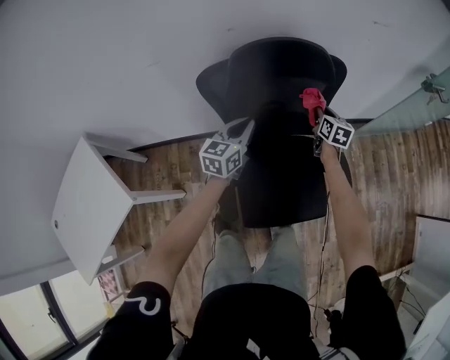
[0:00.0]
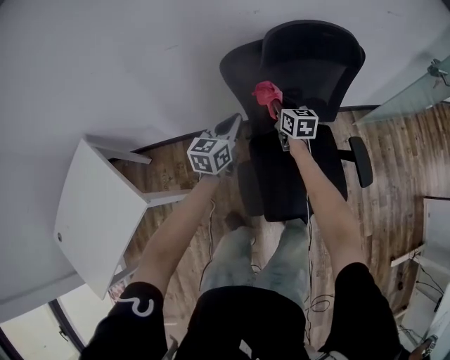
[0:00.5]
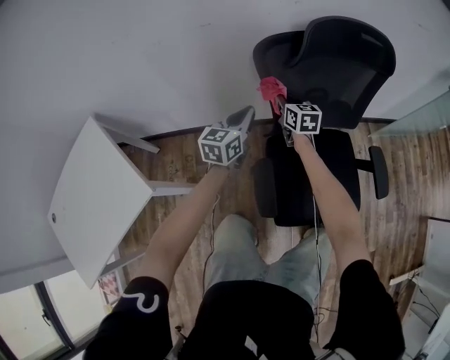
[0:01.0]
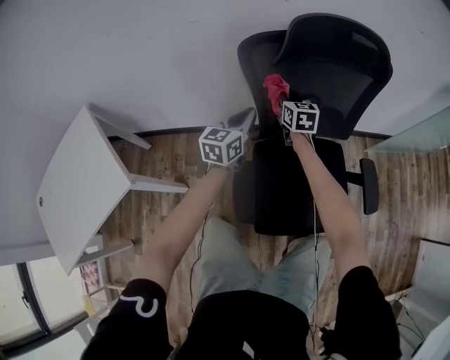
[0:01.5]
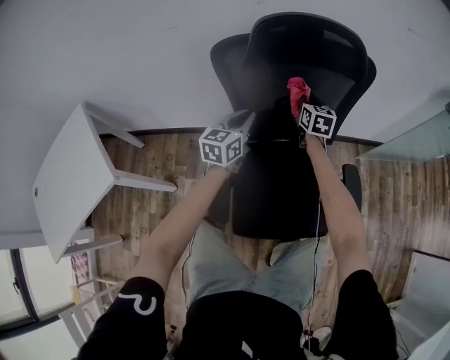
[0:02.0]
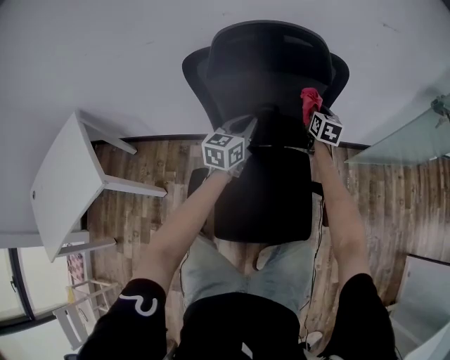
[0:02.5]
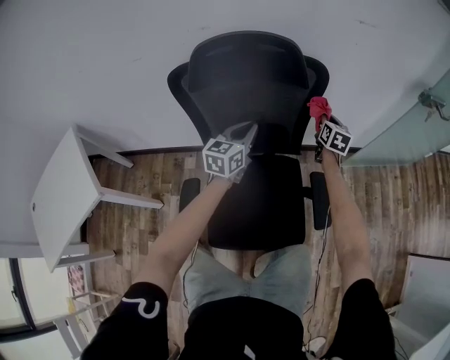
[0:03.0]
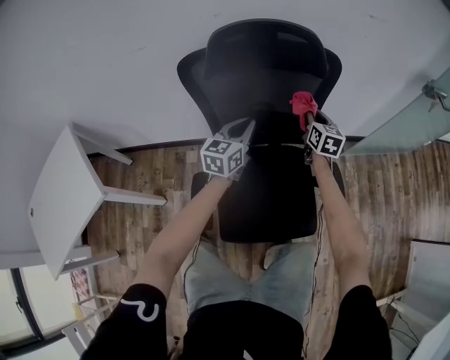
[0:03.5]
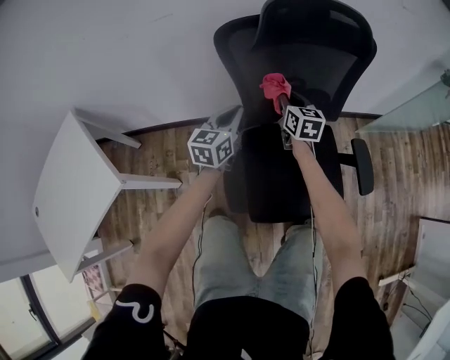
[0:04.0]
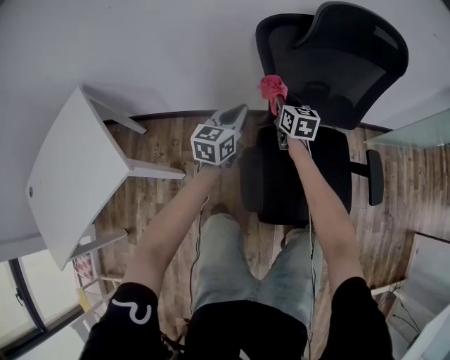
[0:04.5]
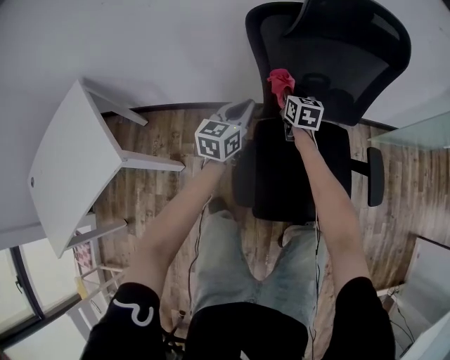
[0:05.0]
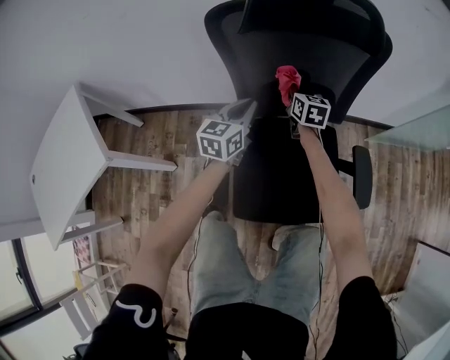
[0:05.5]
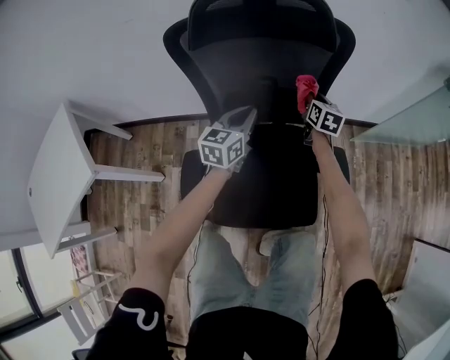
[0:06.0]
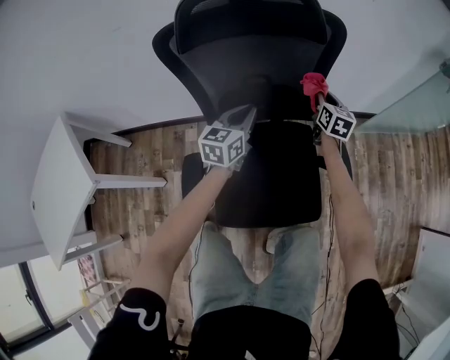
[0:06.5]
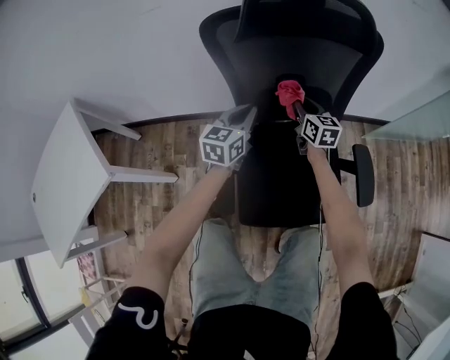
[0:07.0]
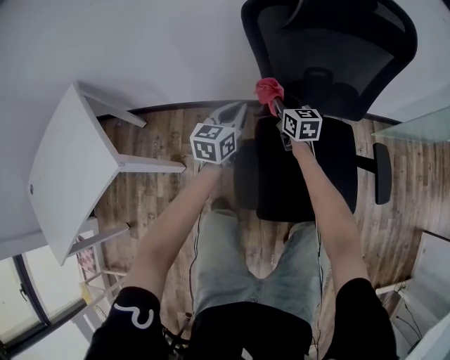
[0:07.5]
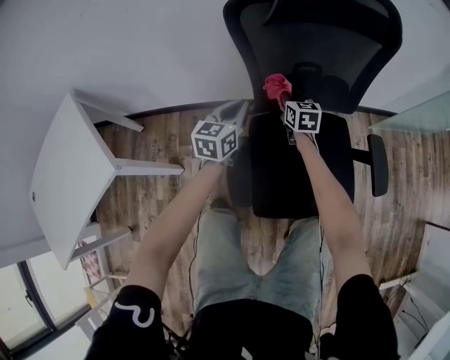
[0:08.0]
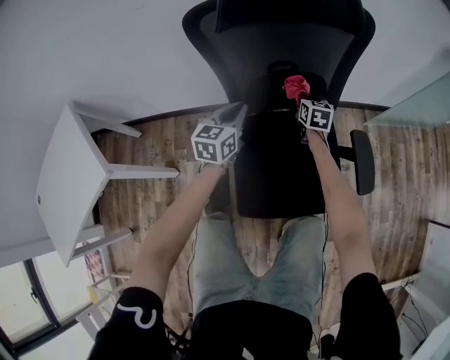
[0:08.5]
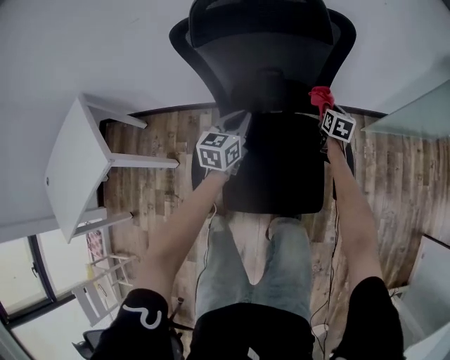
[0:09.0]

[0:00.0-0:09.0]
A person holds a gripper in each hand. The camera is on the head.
0:00.0 to 0:02.0: The right gripper travels to the left and downward by some 15 cm; the left gripper moves downward, roughly 10 cm, and reaches some 20 cm to the left, then returns.
0:02.0 to 0:04.5: Both grippers move to the left and backward, some 20 cm.
0:04.5 to 0:07.0: Both grippers travel together to the right, about 15 cm.
0:07.0 to 0:09.0: The left gripper travels to the right by approximately 10 cm. Meanwhile the right gripper shifts approximately 25 cm to the right, and turns by about 20 degrees.

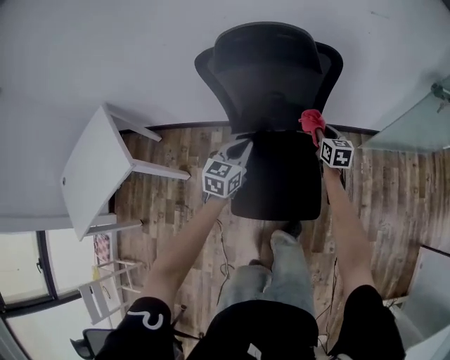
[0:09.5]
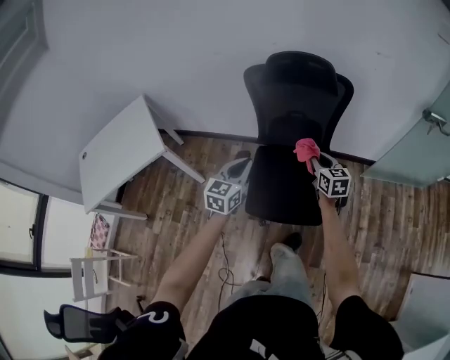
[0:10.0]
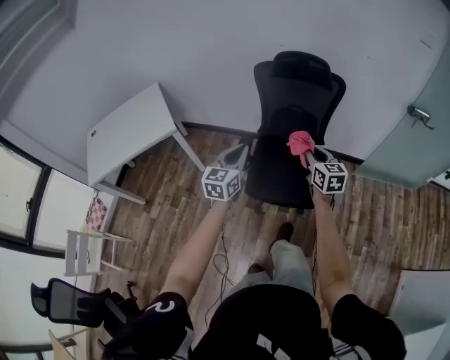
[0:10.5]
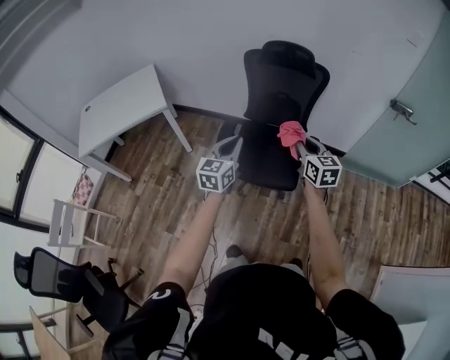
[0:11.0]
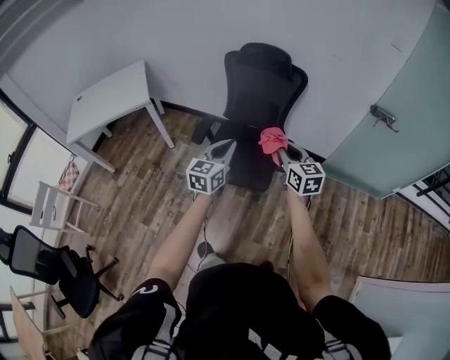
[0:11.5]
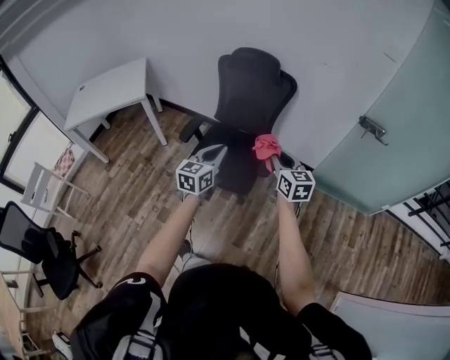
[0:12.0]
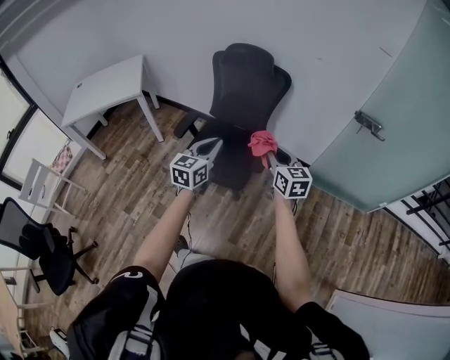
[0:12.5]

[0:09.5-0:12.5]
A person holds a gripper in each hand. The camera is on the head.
0:09.5 to 0:11.0: The grippers both shift backward and upward by approximately 50 cm. The left gripper rotates approximately 30 degrees. The right gripper turns by some 30 degrees.
0:11.0 to 0:12.5: The grippers both shift to the right by approximately 20 cm.

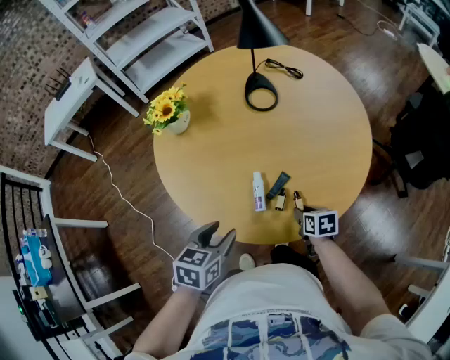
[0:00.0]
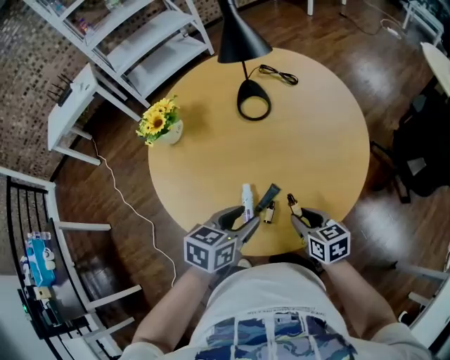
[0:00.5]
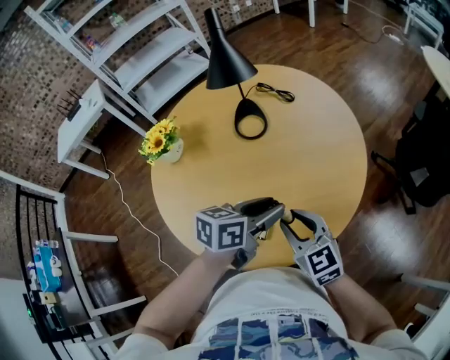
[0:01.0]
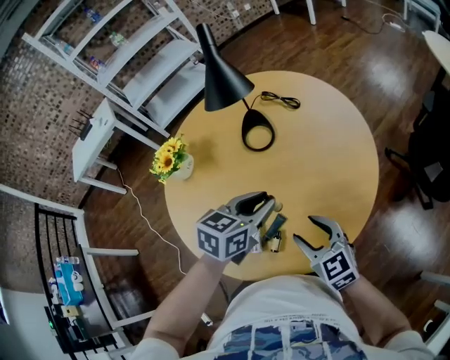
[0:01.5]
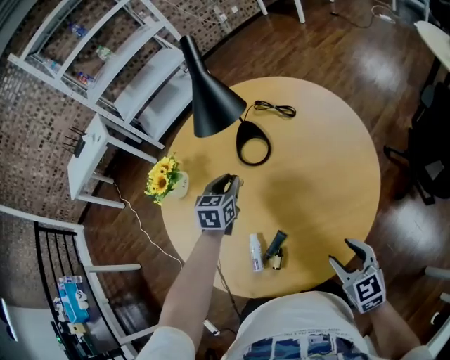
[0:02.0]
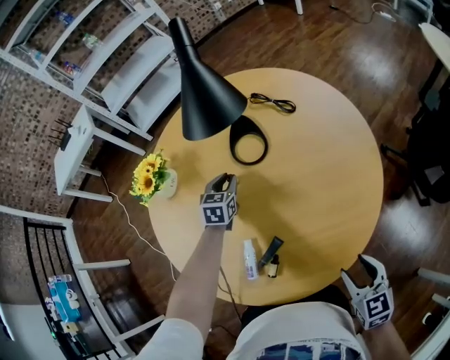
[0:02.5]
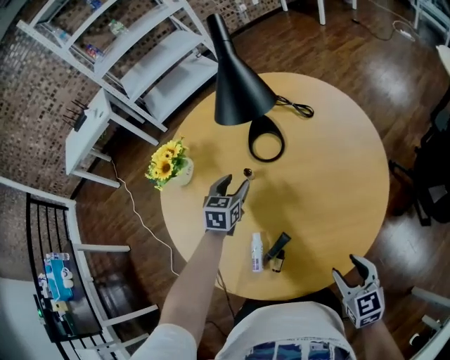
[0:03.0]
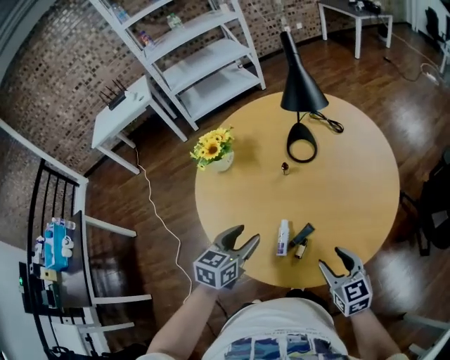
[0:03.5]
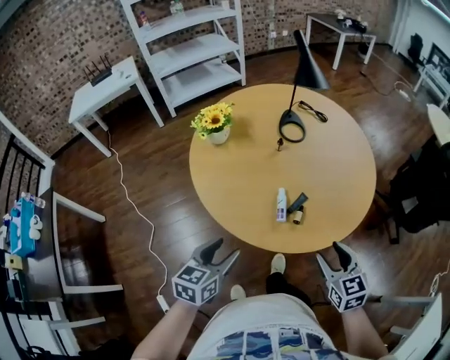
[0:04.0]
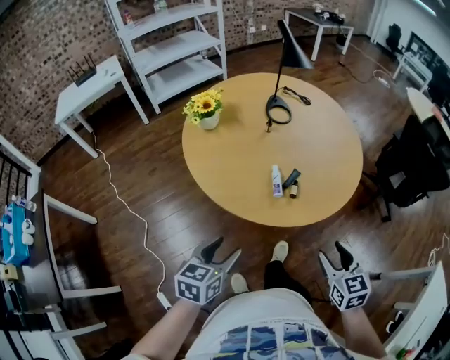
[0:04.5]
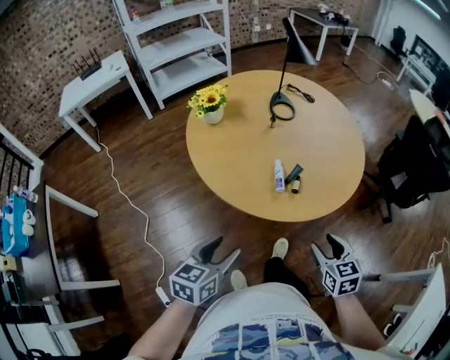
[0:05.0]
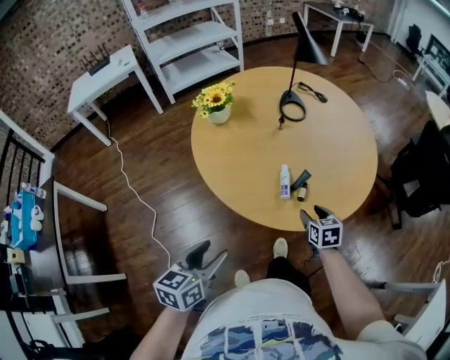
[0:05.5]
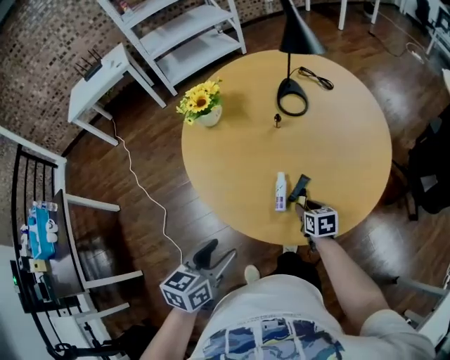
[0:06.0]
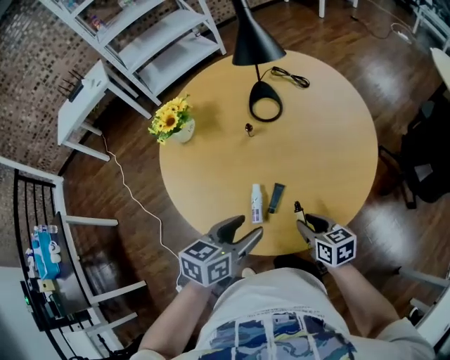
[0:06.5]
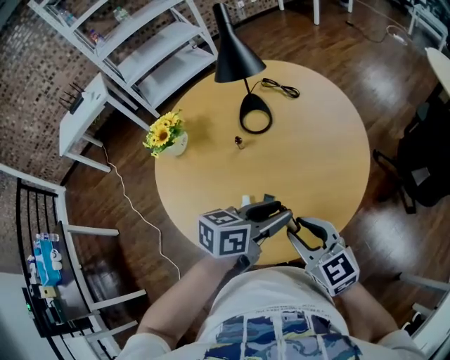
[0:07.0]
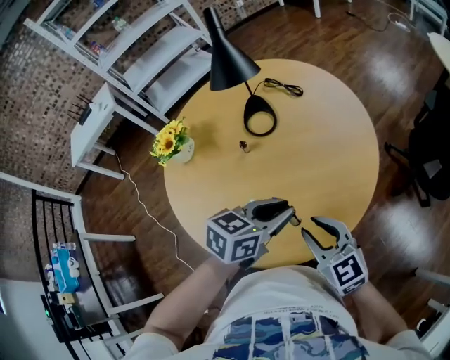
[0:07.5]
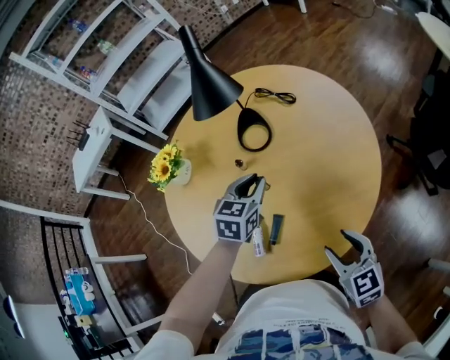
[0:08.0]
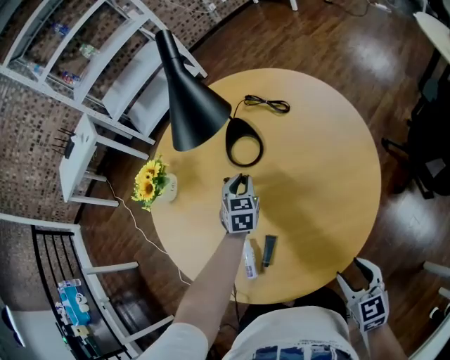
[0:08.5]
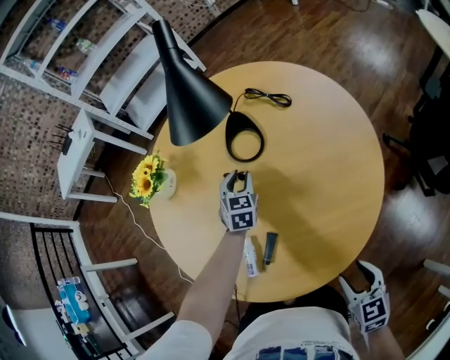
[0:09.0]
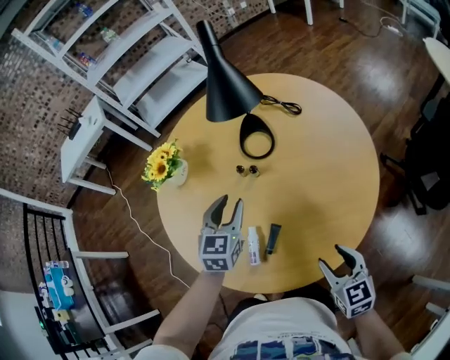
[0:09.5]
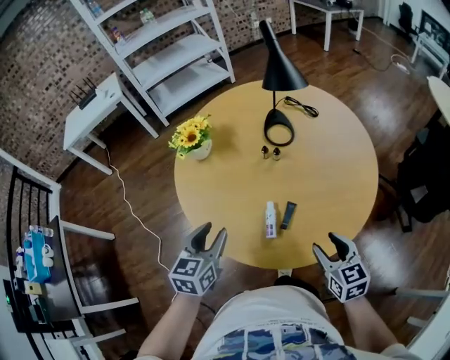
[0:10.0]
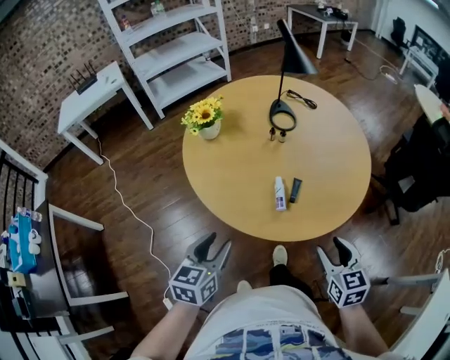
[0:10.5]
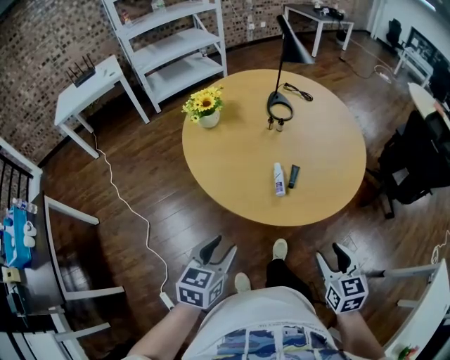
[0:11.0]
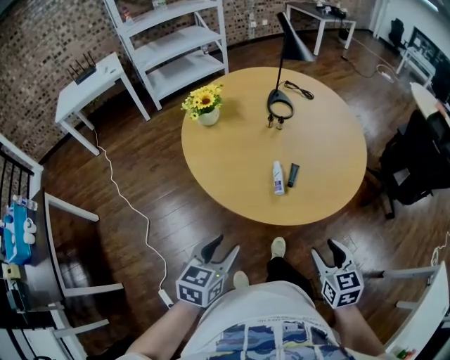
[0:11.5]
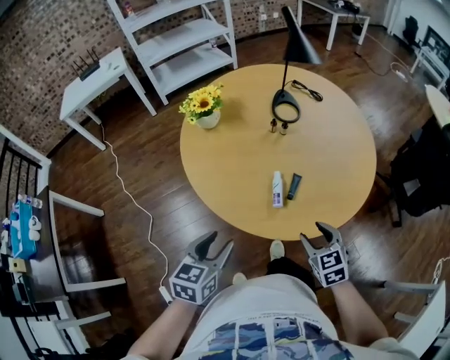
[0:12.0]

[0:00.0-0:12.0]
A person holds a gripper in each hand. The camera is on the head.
0:00.0 to 0:02.0: The left gripper moves forward, roughly 40 cm, and closes. Meanwhile the right gripper moves upward, to the right and forward, approximately 25 cm, swivels some 40 degrees, and opens its fingers.
0:02.0 to 0:04.0: The right gripper shifts some 25 cm to the left and backward. The left gripper goes some 50 cm backward and to the left, and opens its fingers.
0:04.0 to 0:06.0: The right gripper shifts roughly 30 cm downward and forward, and changes its angle by about 30 degrees; the left gripper moves some 10 cm backward and comes back.
0:06.0 to 0:08.0: The left gripper shifts some 40 cm forward and to the right, turns by roughly 30 degrees, and closes, while the right gripper moves to the right and upward, approximately 25 cm, and changes its angle by about 30 degrees.
0:08.0 to 0:10.0: The right gripper heads to the left and backward, covering about 15 cm. The left gripper heads to the left and backward, covering about 35 cm.
0:10.0 to 0:12.0: The left gripper is displaced backward by approximately 15 cm. The right gripper shifts some 10 cm backward, to the left and downward.

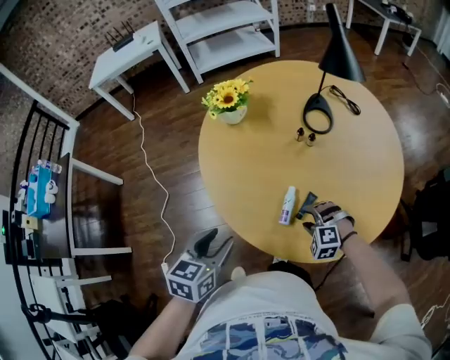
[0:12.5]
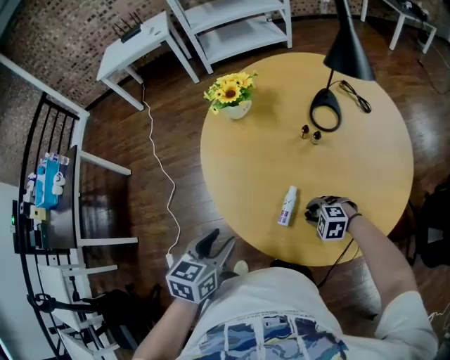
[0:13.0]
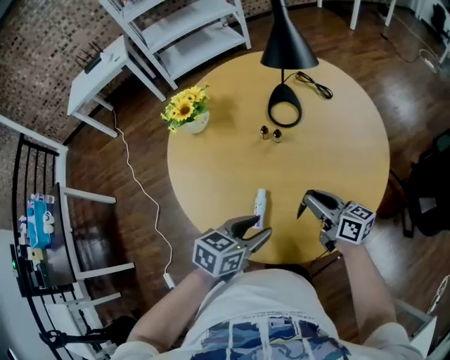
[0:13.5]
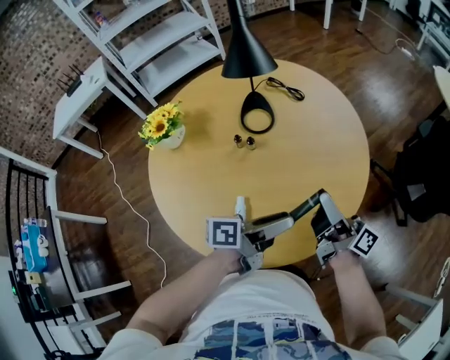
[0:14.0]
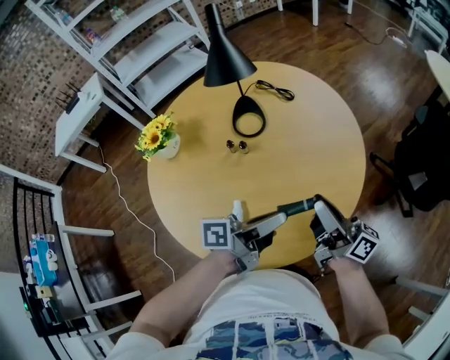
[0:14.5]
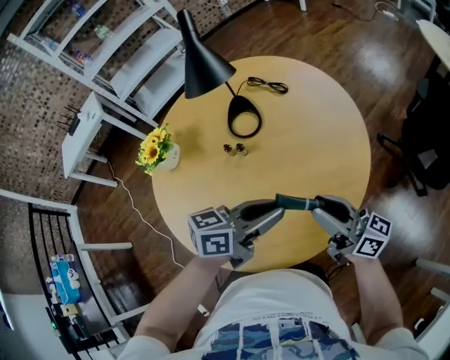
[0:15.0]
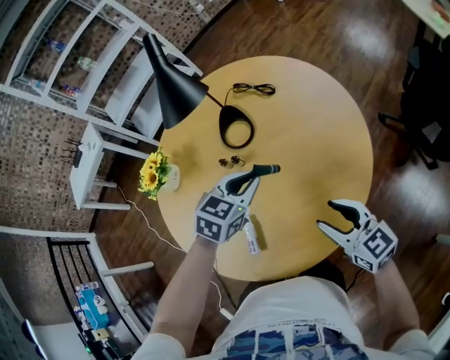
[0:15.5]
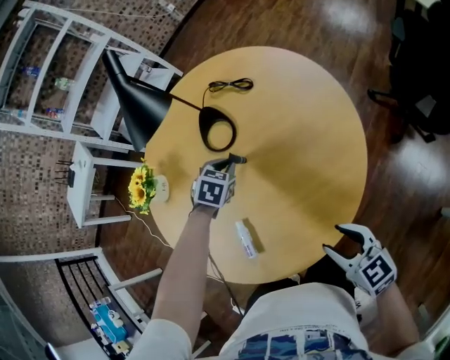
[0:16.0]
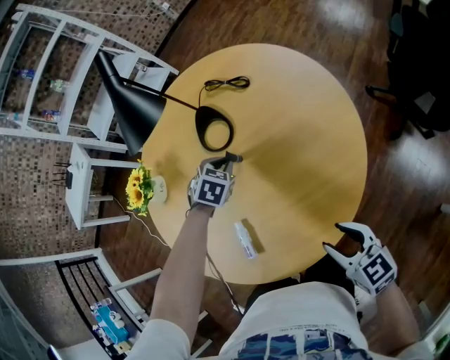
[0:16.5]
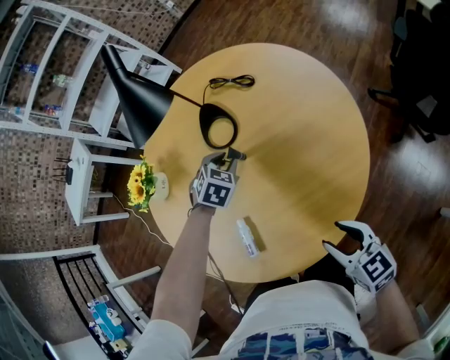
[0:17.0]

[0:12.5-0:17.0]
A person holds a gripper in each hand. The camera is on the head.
0:12.5 to 0:14.5: The left gripper moves some 35 cm, and angles its fingers upward, by roughly 40 degrees; the right gripper shifts some 25 cm upward, tips its fingers upward by approximately 80 degrees, and closes up.
0:14.5 to 0:17.0: The left gripper is displaced forward and downward by approximately 30 cm, and tips its fingers downward by some 60 degrees; the right gripper moves downward and backward, about 15 cm, tilts its fingers some 50 degrees downward, and opens its fingers.
